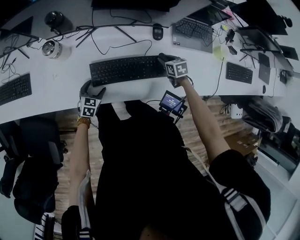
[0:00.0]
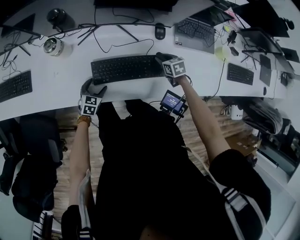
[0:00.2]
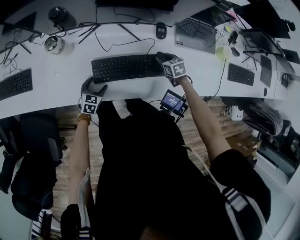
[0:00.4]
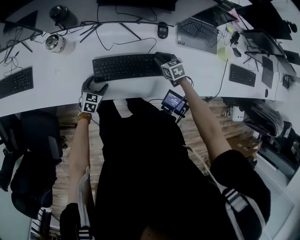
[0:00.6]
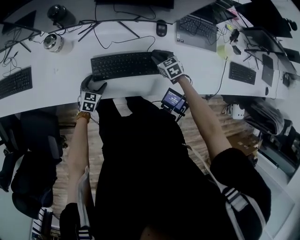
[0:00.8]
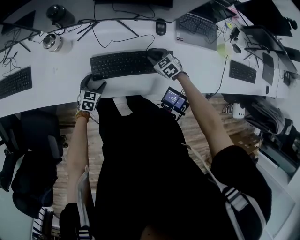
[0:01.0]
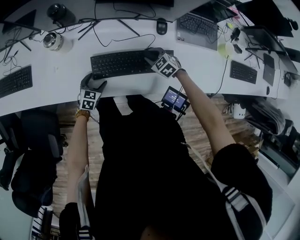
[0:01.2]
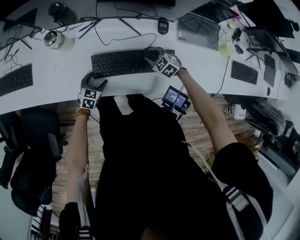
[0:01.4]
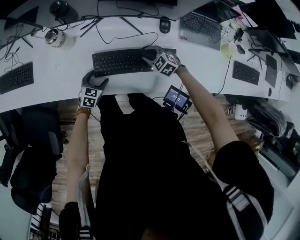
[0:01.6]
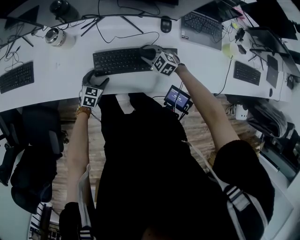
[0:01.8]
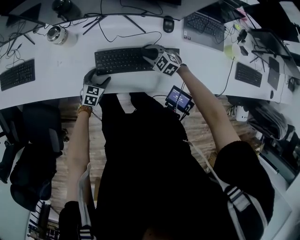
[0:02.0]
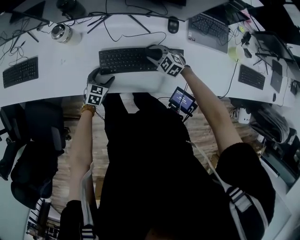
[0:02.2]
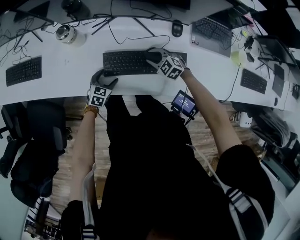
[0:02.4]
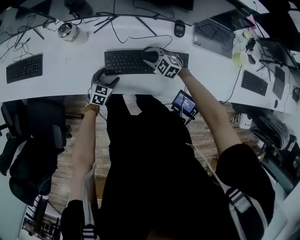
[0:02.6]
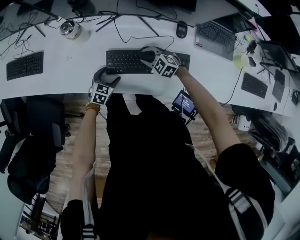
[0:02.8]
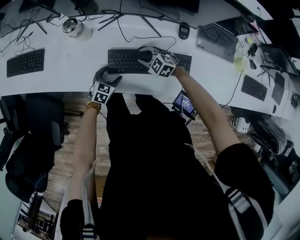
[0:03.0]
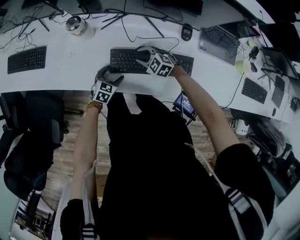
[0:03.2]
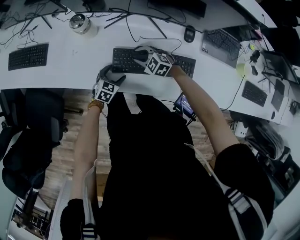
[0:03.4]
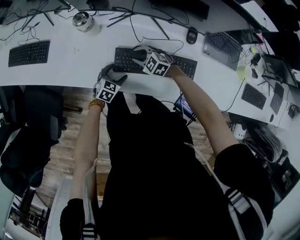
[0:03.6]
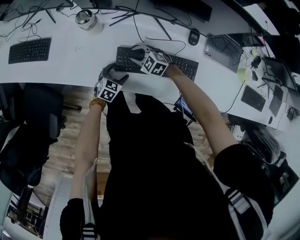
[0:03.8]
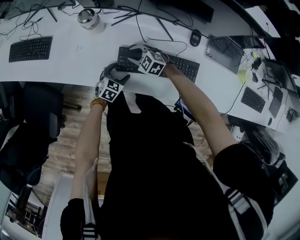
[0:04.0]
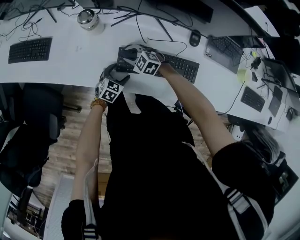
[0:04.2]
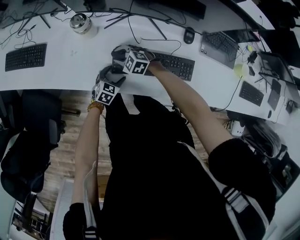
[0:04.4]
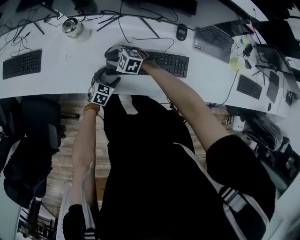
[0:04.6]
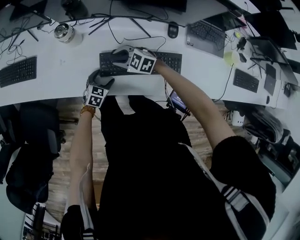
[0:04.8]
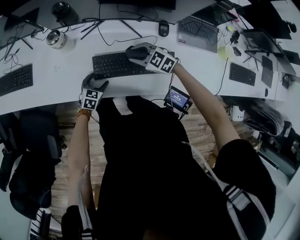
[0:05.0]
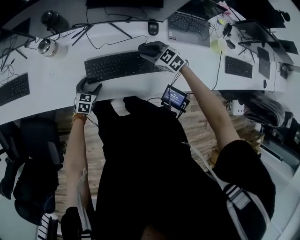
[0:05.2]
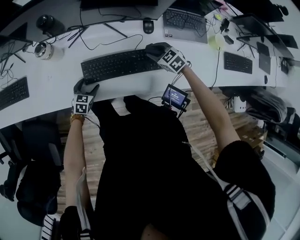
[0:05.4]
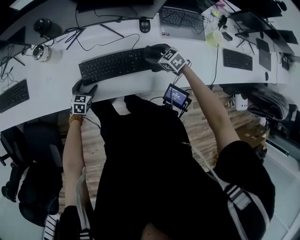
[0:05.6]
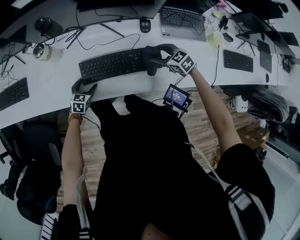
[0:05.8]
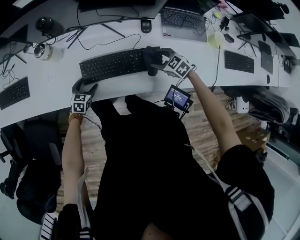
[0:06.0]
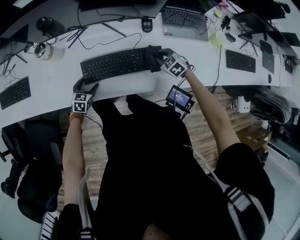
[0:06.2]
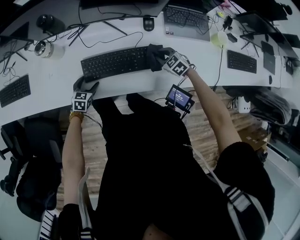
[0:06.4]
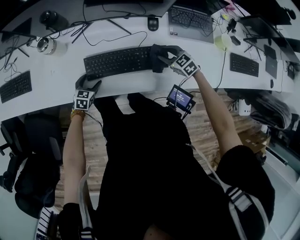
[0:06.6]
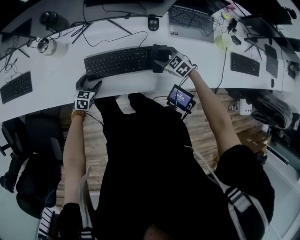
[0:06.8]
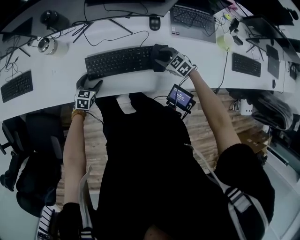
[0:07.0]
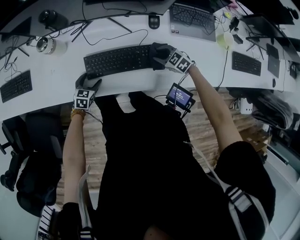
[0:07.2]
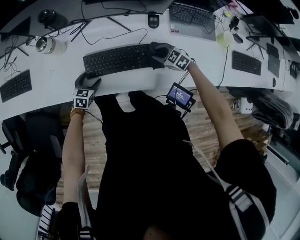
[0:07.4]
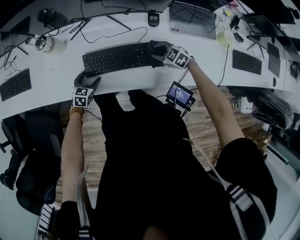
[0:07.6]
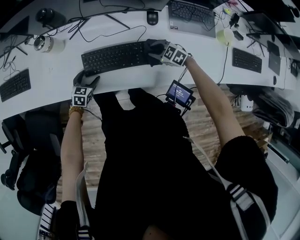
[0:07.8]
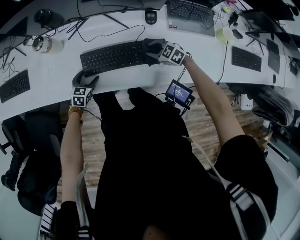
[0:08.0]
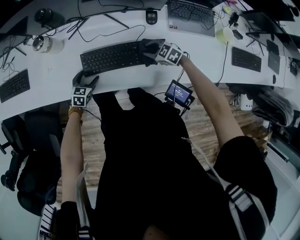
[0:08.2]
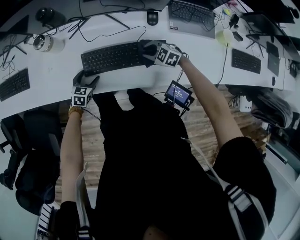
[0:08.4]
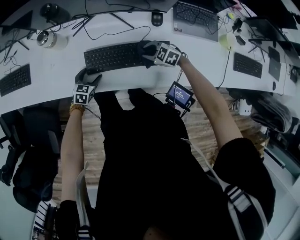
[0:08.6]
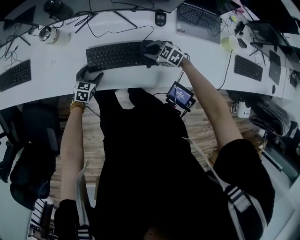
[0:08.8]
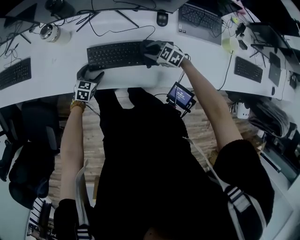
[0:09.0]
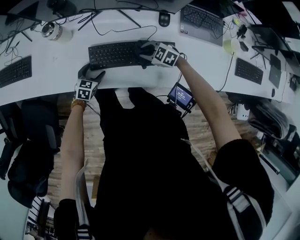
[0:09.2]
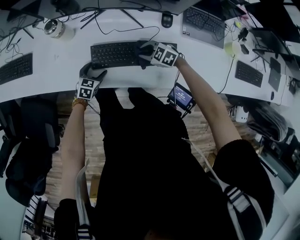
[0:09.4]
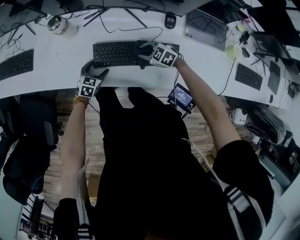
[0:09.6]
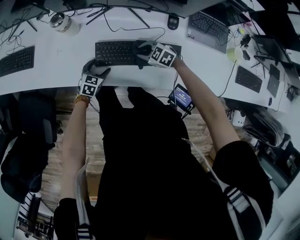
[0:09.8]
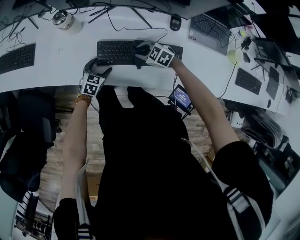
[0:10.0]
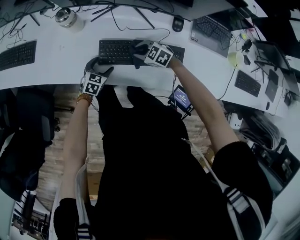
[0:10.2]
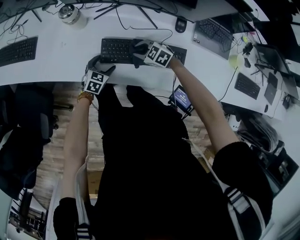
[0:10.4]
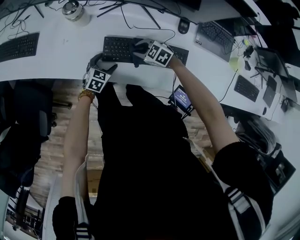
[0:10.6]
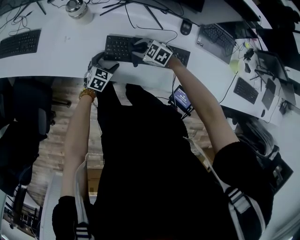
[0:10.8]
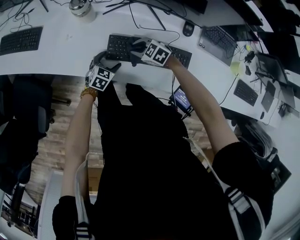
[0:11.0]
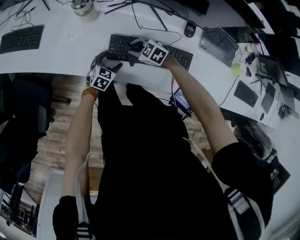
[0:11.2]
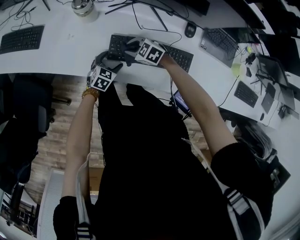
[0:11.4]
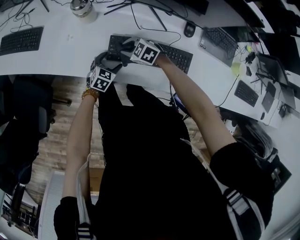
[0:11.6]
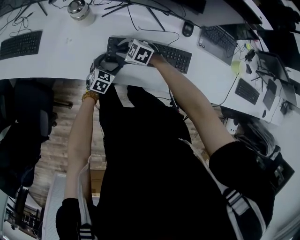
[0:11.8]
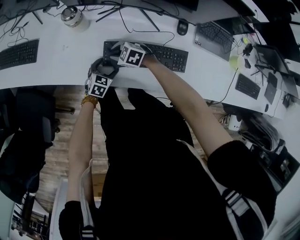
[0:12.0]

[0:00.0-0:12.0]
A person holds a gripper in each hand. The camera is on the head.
0:00.0 to 0:01.6: The right gripper heads to the left, covering roughly 15 cm, and twists roughly 50 degrees counterclockwise, seen from behind.
0:01.6 to 0:03.0: The right gripper shifts approximately 10 cm to the left.
0:03.0 to 0:04.4: The right gripper shifts roughly 15 cm to the left.
0:04.4 to 0:06.0: The right gripper shifts approximately 35 cm to the right, swivels some 30 degrees, and opens up.
0:06.0 to 0:07.6: The right gripper ends up approximately 5 cm from where it was, and closes.
0:07.6 to 0:09.0: The right gripper is displaced to the left by about 5 cm.
0:09.0 to 0:10.4: The right gripper shifts roughly 10 cm to the left.
0:10.4 to 0:12.0: The right gripper is displaced to the left and forward by approximately 10 cm.

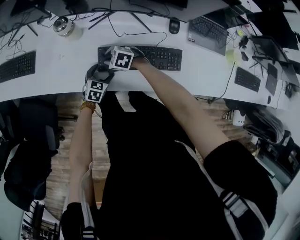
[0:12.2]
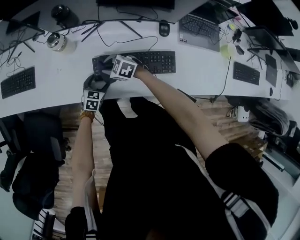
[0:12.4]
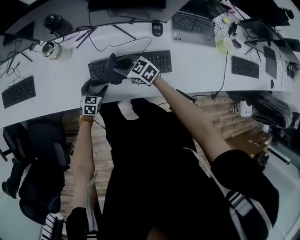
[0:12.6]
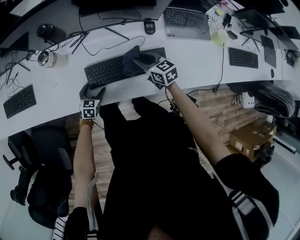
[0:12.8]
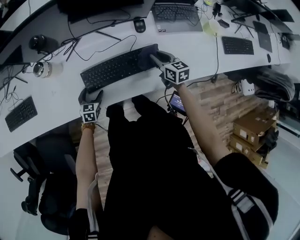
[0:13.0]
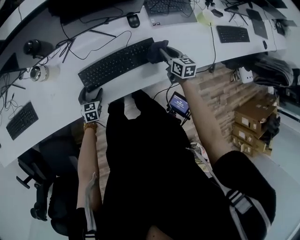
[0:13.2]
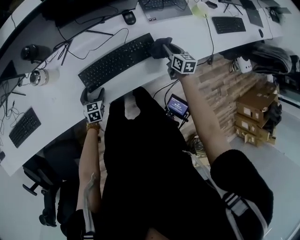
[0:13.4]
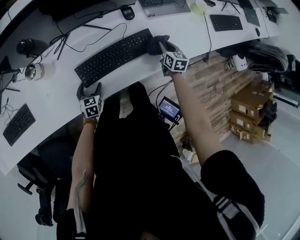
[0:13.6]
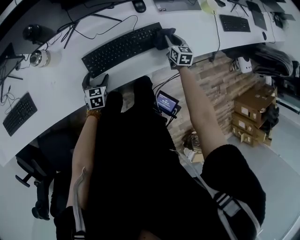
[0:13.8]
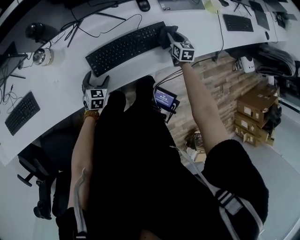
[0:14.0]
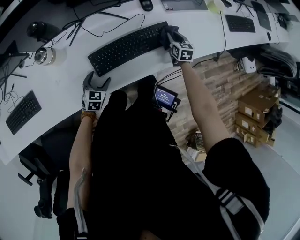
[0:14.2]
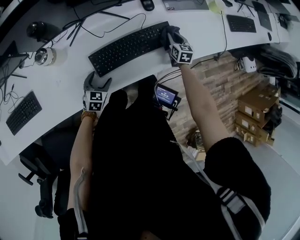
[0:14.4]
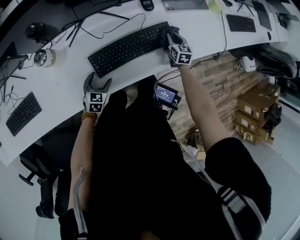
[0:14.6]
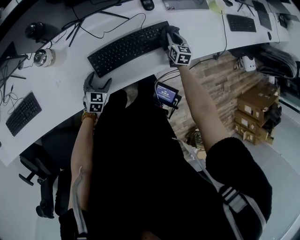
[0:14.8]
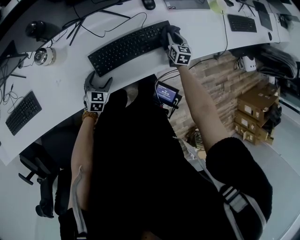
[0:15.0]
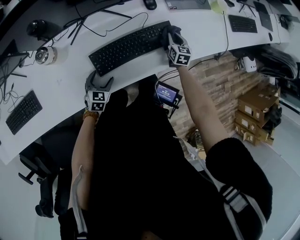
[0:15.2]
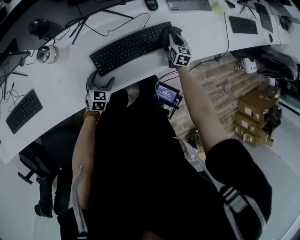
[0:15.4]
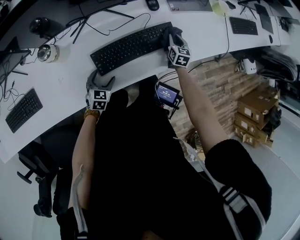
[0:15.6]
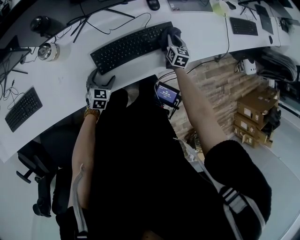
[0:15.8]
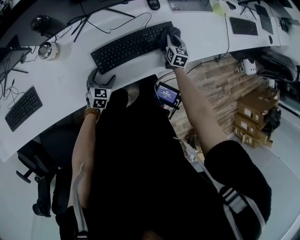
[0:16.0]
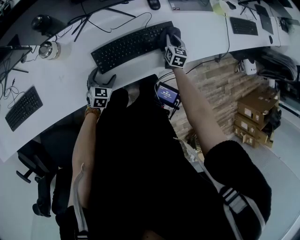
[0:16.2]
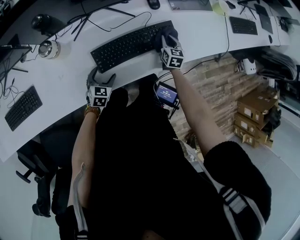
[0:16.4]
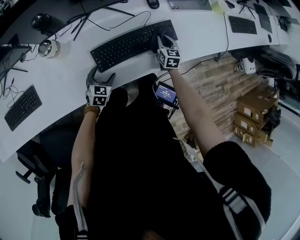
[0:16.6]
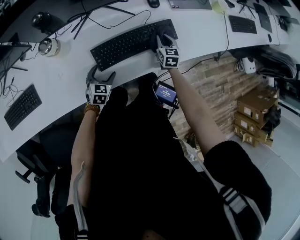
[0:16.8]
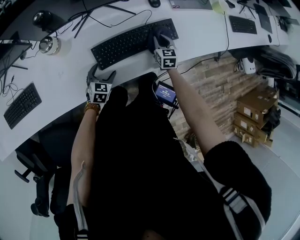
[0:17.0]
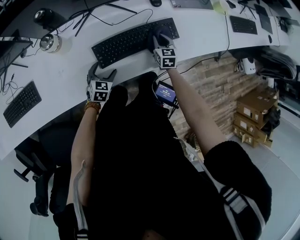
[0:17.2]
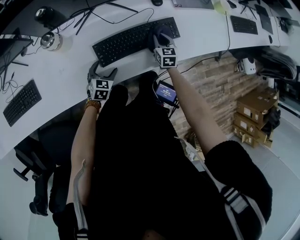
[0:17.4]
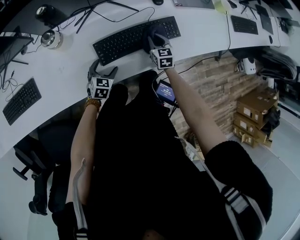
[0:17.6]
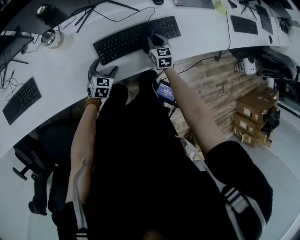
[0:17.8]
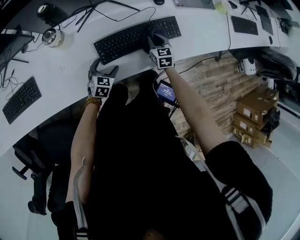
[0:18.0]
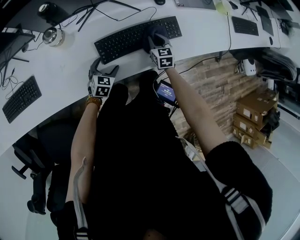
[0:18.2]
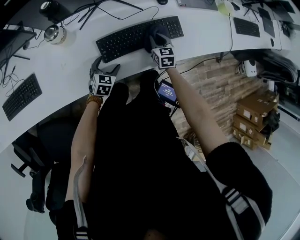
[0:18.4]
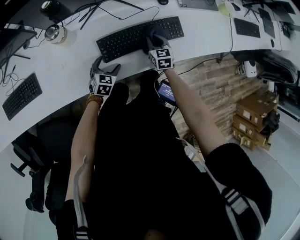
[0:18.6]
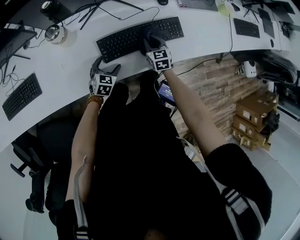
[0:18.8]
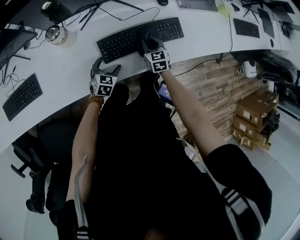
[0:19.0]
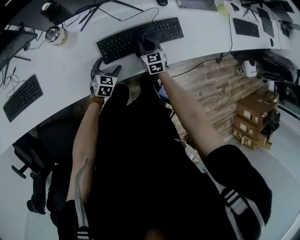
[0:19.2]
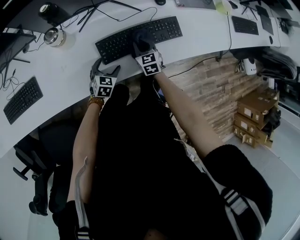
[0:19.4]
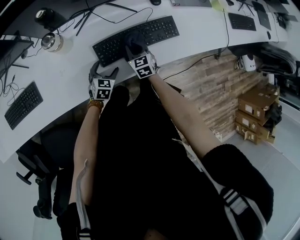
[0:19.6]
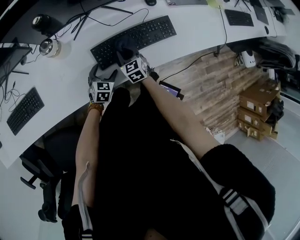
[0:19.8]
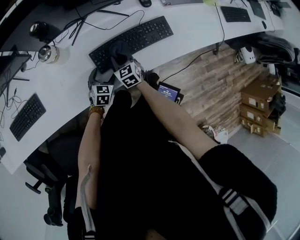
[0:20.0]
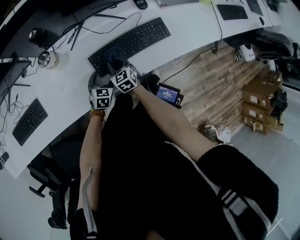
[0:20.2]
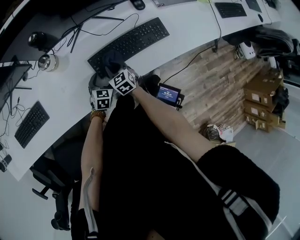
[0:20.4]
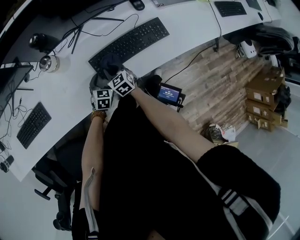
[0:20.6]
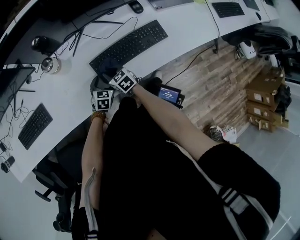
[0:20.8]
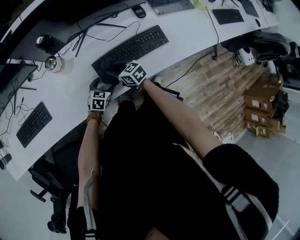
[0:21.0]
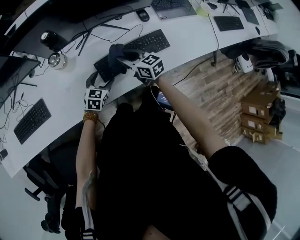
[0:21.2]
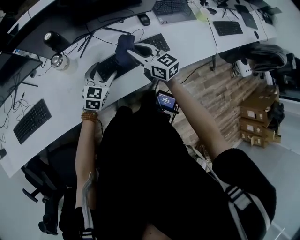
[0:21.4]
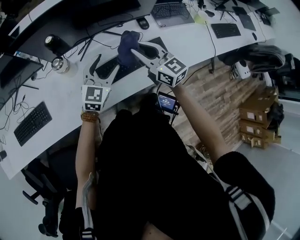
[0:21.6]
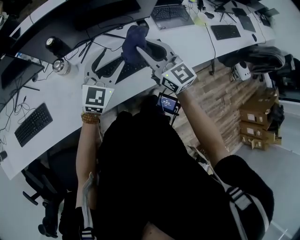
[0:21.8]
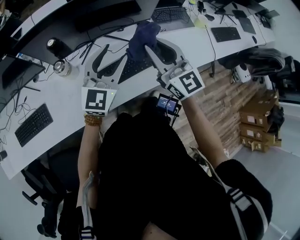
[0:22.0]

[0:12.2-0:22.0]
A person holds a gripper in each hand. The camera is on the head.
0:12.2 to 0:13.6: The right gripper shifts by roughly 40 cm, and rotates some 100 degrees.
0:13.6 to 0:15.0: The right gripper shifts by some 5 cm.
0:15.0 to 0:16.4: The right gripper ends up about 5 cm from where it was.
0:16.4 to 0:17.8: The right gripper travels to the left by about 10 cm.
0:17.8 to 0:19.2: The right gripper travels to the left by roughly 5 cm.
0:19.2 to 0:20.6: The right gripper heads to the left and backward, covering some 15 cm.
0:20.6 to 0:22.0: The grippers both shift upward by some 40 cm. The right gripper points its fingers approximately 40 degrees further upward; the left gripper points its fingers approximately 50 degrees further upward, and closes its fingers.

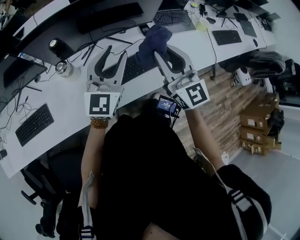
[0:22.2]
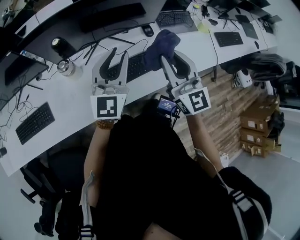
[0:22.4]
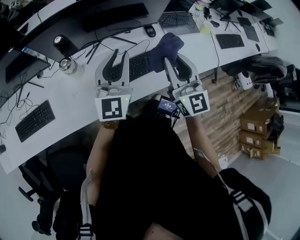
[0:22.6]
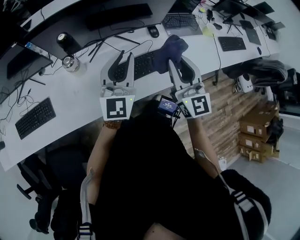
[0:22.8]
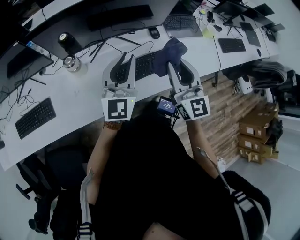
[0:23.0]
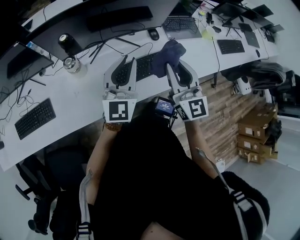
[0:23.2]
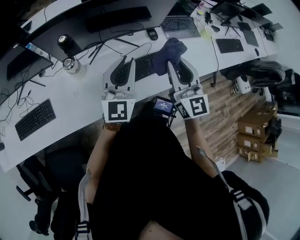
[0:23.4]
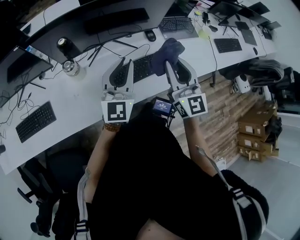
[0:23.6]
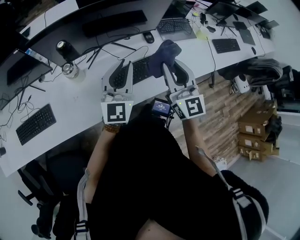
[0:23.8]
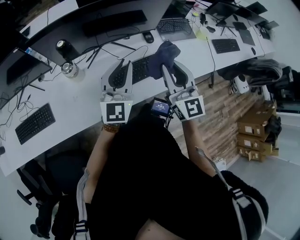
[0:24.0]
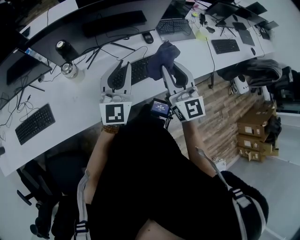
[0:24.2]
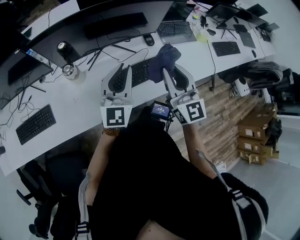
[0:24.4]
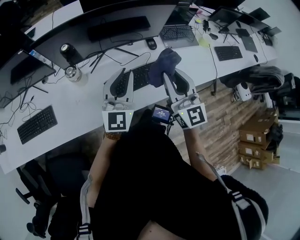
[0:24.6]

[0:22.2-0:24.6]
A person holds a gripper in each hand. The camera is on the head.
0:22.2 to 0:24.6: The grippers make only small movements.
